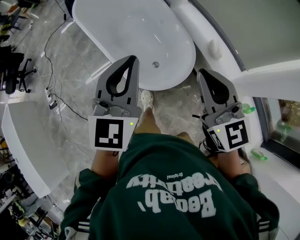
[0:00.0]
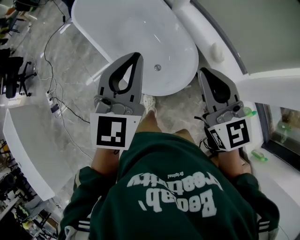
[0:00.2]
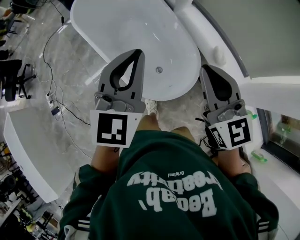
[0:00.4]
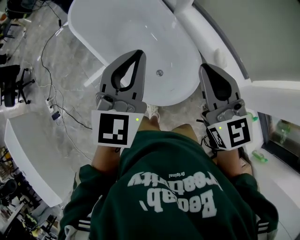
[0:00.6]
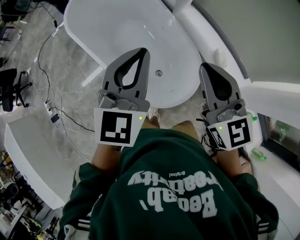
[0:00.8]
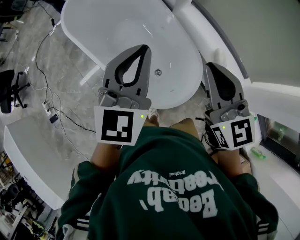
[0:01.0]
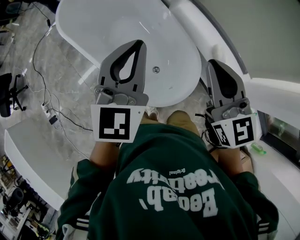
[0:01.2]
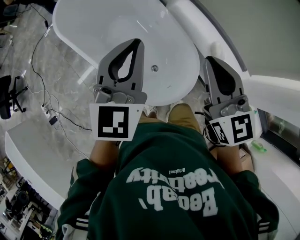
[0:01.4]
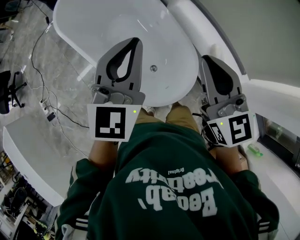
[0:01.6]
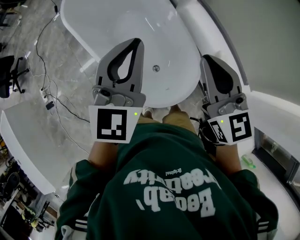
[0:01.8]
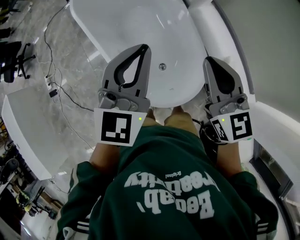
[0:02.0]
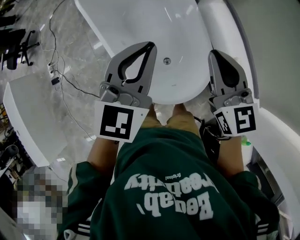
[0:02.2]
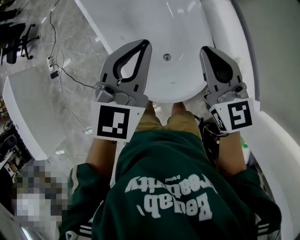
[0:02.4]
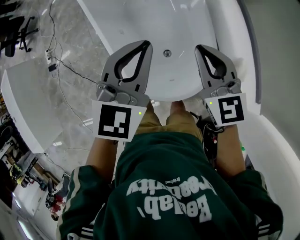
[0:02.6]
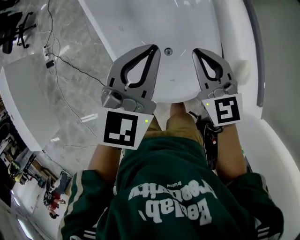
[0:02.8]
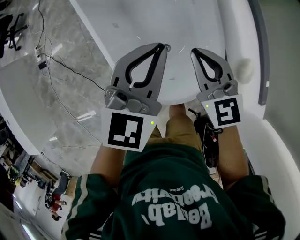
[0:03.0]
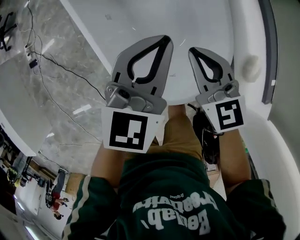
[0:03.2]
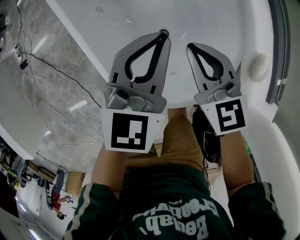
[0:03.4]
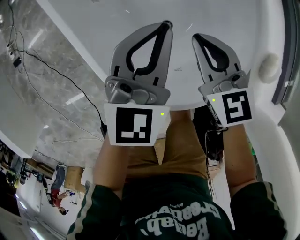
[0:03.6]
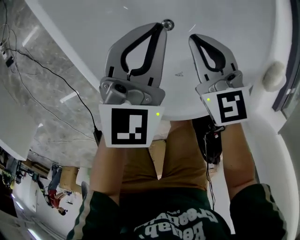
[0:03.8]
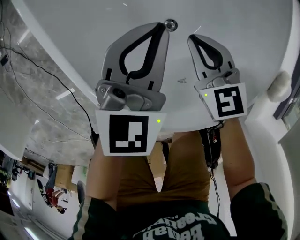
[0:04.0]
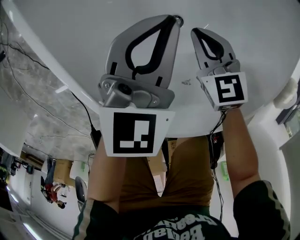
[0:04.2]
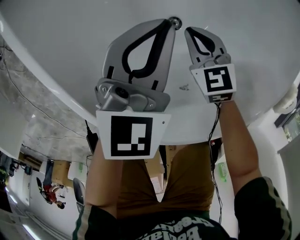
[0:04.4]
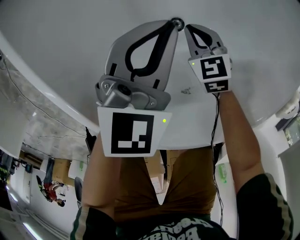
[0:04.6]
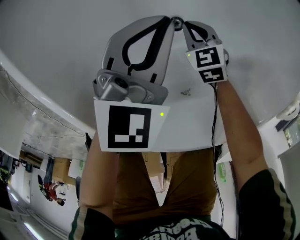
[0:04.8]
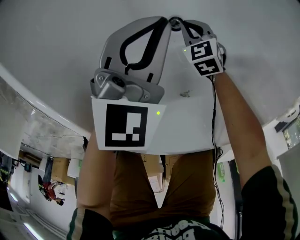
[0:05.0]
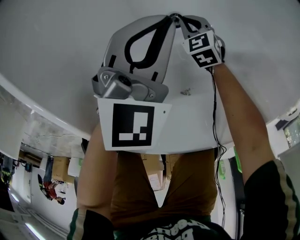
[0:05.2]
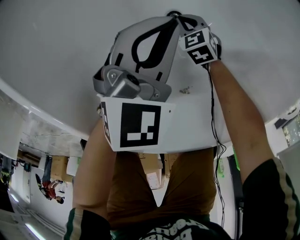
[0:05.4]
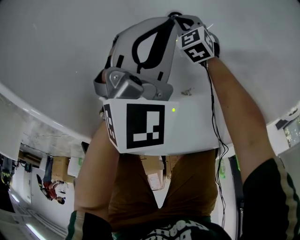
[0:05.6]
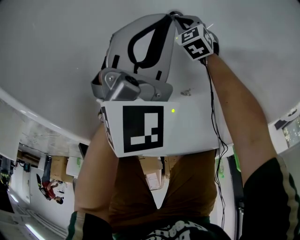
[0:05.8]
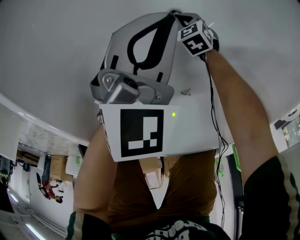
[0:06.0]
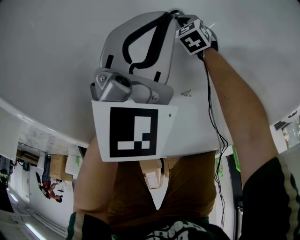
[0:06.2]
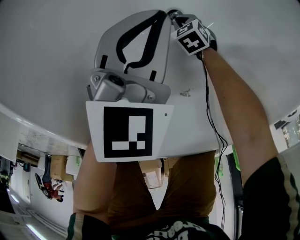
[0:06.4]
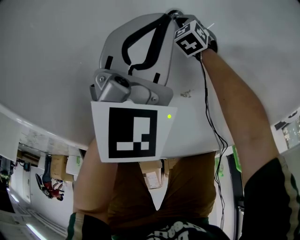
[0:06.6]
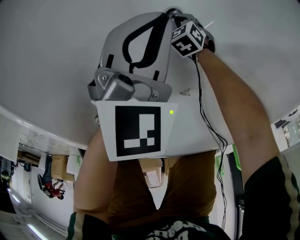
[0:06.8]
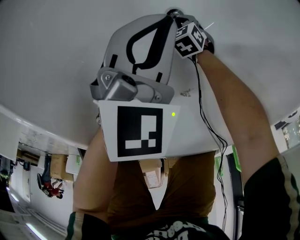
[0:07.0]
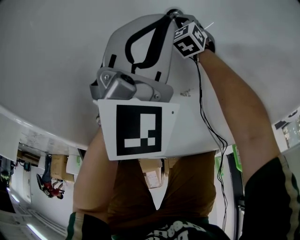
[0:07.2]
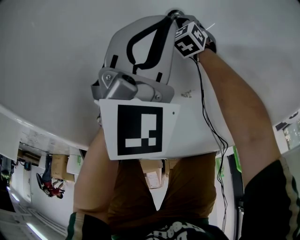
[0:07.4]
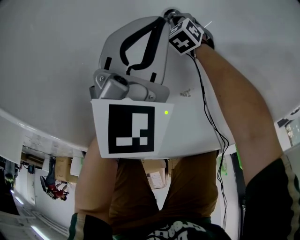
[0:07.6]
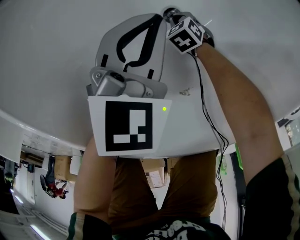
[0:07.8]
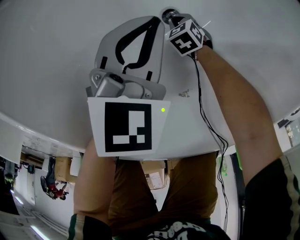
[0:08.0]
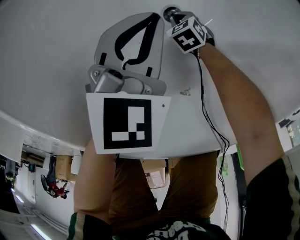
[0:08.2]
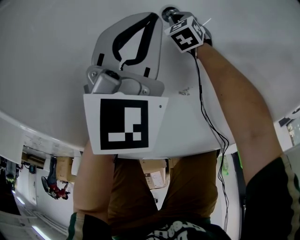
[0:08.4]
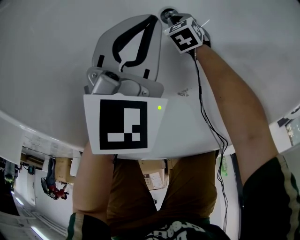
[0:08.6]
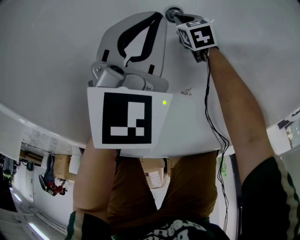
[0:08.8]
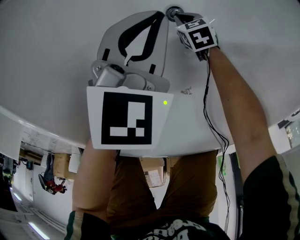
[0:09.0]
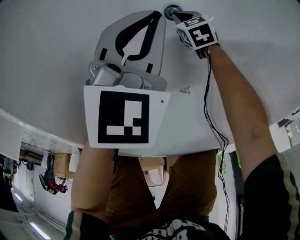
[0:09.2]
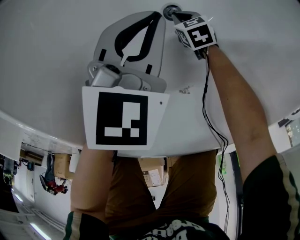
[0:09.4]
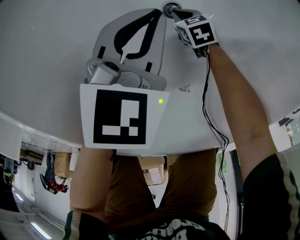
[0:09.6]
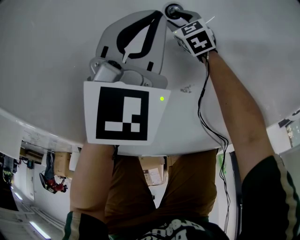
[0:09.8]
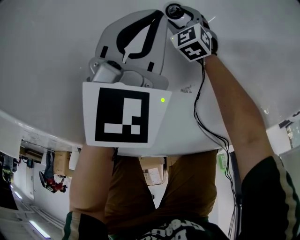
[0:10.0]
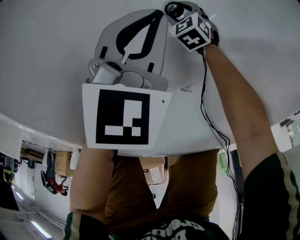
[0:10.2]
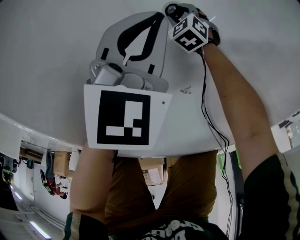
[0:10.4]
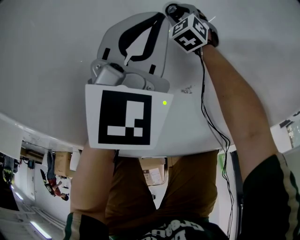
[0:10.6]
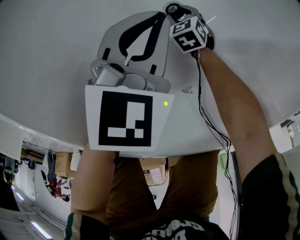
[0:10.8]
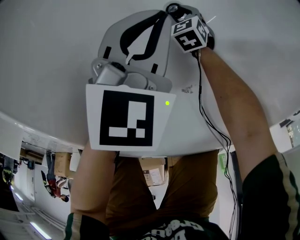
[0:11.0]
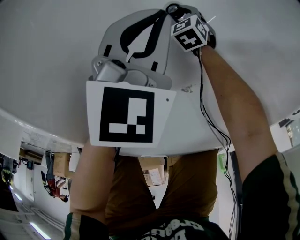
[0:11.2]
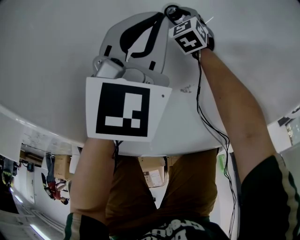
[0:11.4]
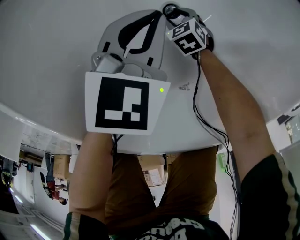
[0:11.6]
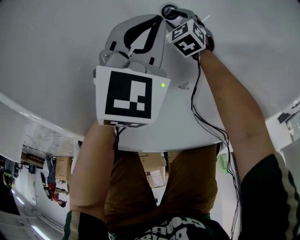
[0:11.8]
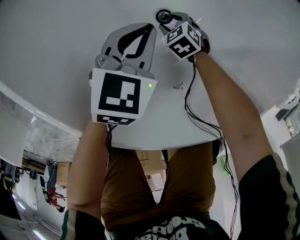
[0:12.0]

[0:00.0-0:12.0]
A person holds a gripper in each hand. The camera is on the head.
0.0 to 1.6 s: Both grippers travel together forward, some 20 cm.
1.6 to 3.0 s: The left gripper travels downward by approximately 20 cm; the right gripper moves downward and forward, roughly 30 cm, and turns by about 30 degrees.
3.0 to 4.4 s: The grippers both shift downward by roughly 40 cm. The right gripper rotates approximately 30 degrees.
4.4 to 6.0 s: The left gripper heads downward, covering approximately 5 cm; the right gripper travels downward by approximately 20 cm, and turns by some 30 degrees.
6.0 to 7.6 s: The grippers stay close to where they were, moving slightly.
7.6 to 9.0 s: The right gripper changes its angle by roughly 20 degrees.
9.0 to 10.4 s: The right gripper changes its angle by about 30 degrees, and opens up.
10.4 to 12.0 s: There are only small adjustments of the grippers.

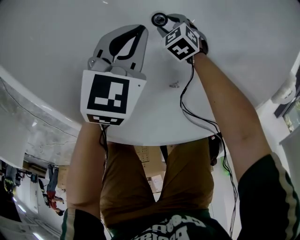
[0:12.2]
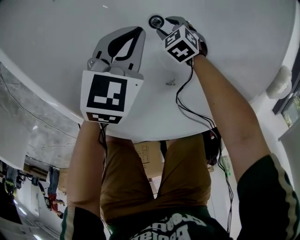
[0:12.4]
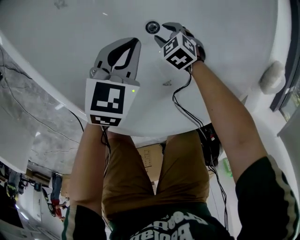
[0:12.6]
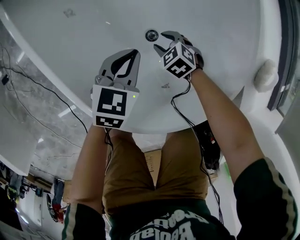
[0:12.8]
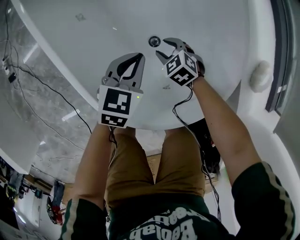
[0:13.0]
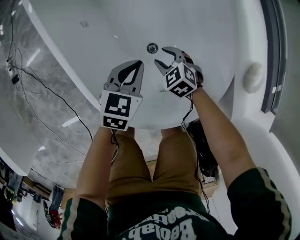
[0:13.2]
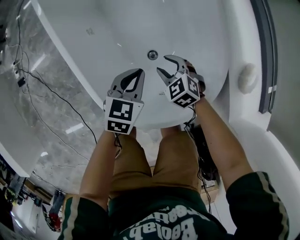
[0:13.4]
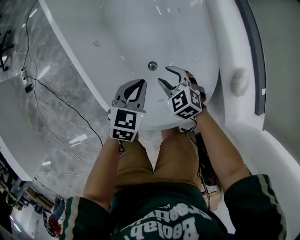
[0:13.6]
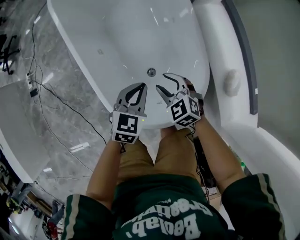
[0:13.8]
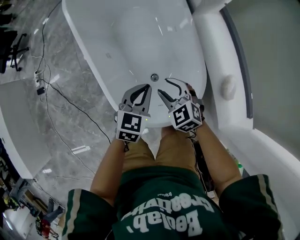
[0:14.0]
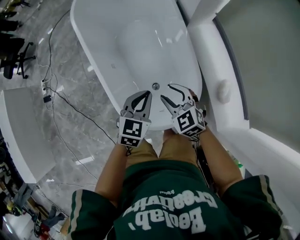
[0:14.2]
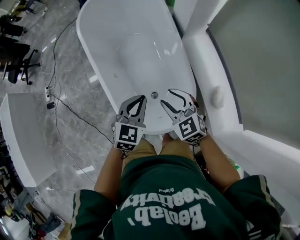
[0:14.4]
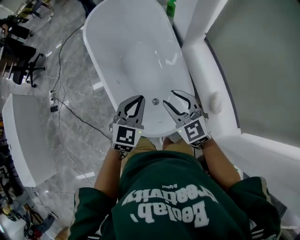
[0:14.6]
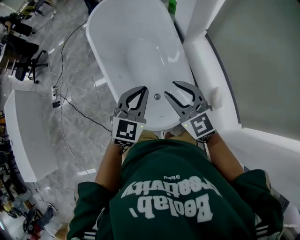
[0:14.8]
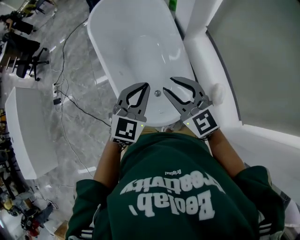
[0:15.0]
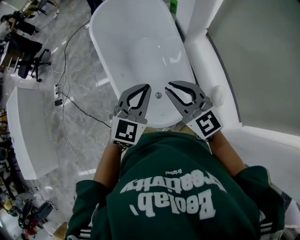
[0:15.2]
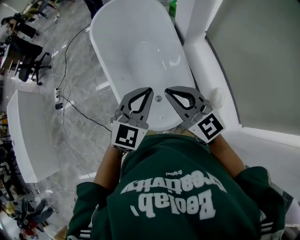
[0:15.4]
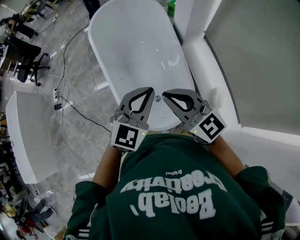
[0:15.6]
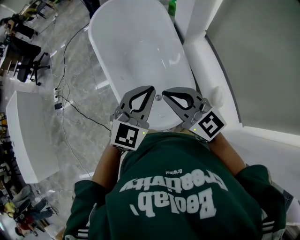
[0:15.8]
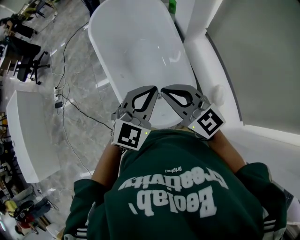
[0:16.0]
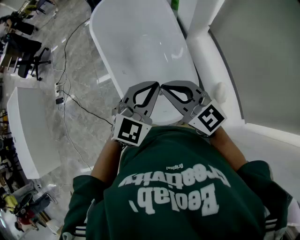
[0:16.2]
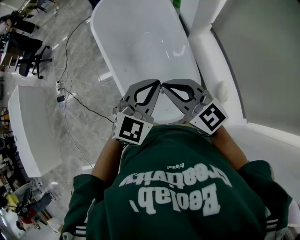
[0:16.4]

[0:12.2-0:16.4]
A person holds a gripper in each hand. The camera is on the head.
12.2 to 13.6 s: The left gripper shifts some 20 cm upward, while the right gripper heads upward, covering about 35 cm, and turns by about 20 degrees.
13.6 to 15.0 s: Both grippers move upward, about 40 cm. The right gripper points its fingers some 40 degrees further upward. Meanwhile the left gripper turns by about 30 degrees.
15.0 to 16.4 s: The right gripper closes.

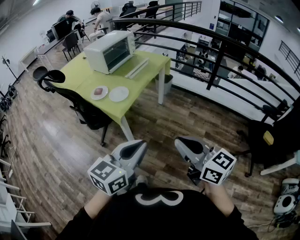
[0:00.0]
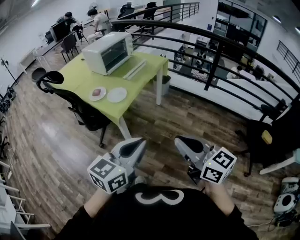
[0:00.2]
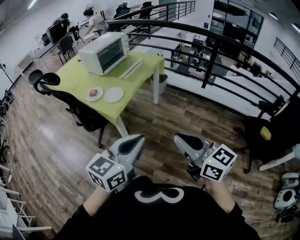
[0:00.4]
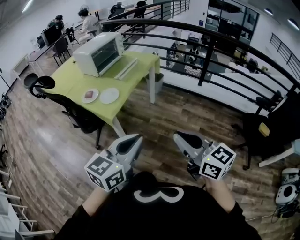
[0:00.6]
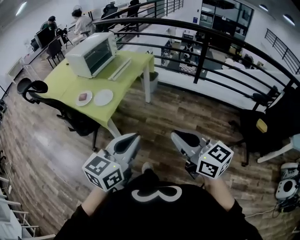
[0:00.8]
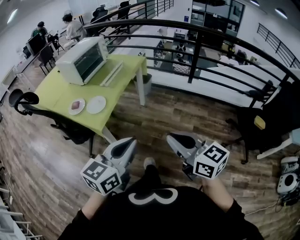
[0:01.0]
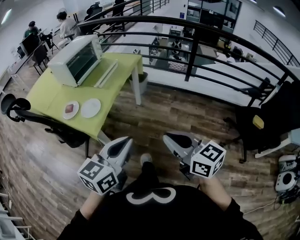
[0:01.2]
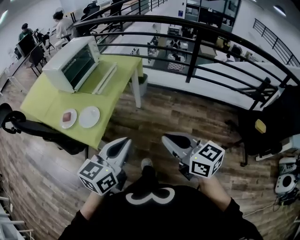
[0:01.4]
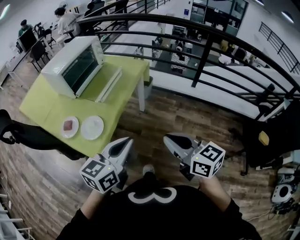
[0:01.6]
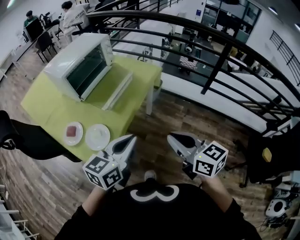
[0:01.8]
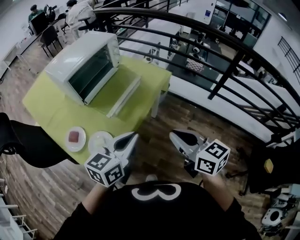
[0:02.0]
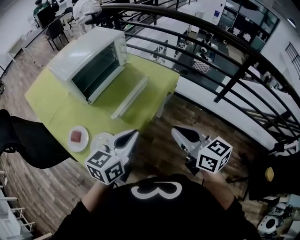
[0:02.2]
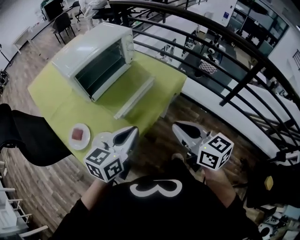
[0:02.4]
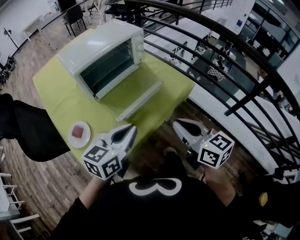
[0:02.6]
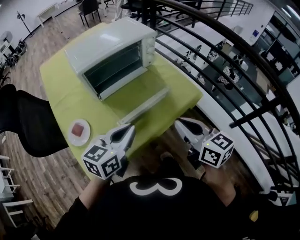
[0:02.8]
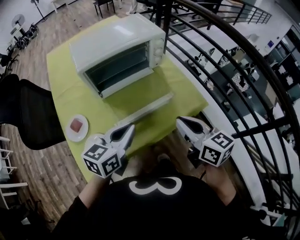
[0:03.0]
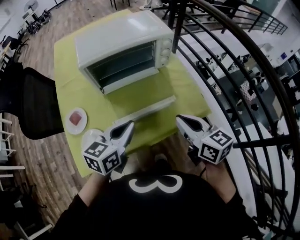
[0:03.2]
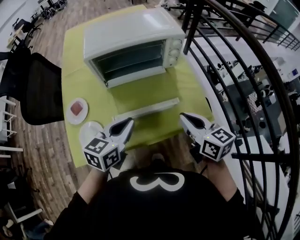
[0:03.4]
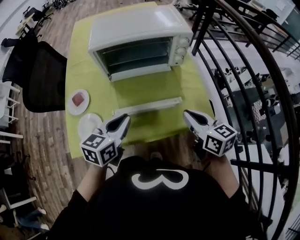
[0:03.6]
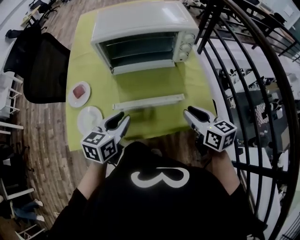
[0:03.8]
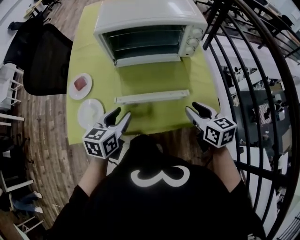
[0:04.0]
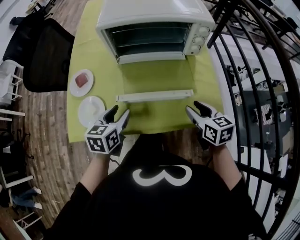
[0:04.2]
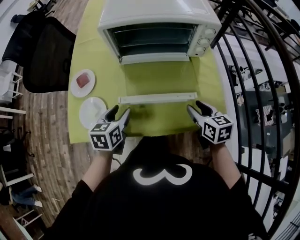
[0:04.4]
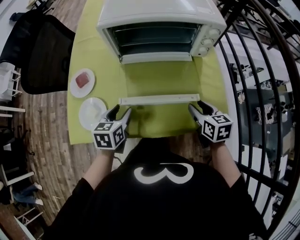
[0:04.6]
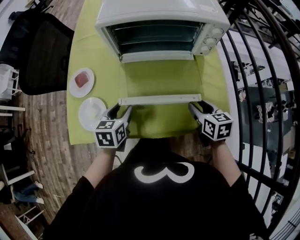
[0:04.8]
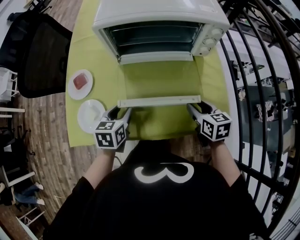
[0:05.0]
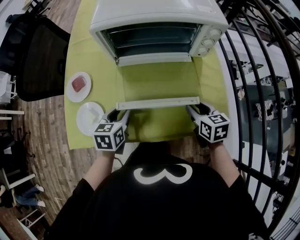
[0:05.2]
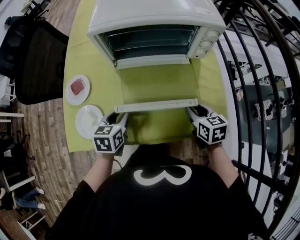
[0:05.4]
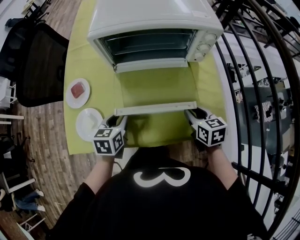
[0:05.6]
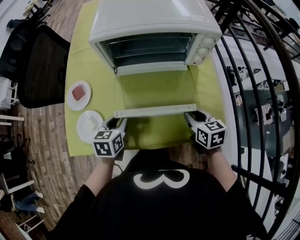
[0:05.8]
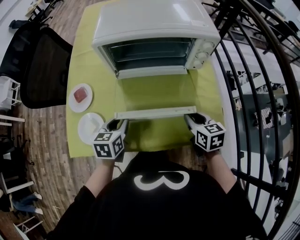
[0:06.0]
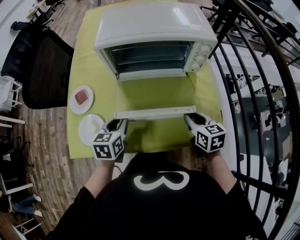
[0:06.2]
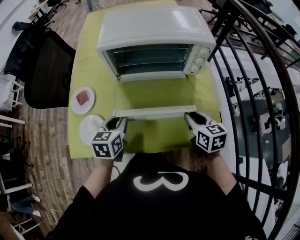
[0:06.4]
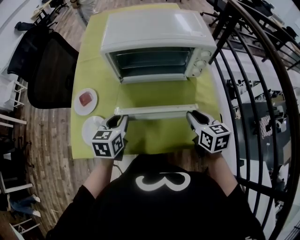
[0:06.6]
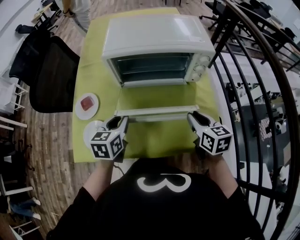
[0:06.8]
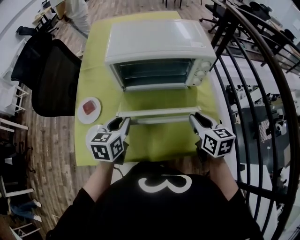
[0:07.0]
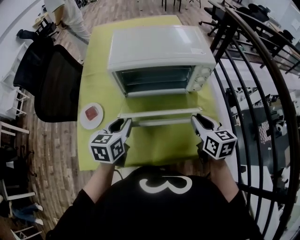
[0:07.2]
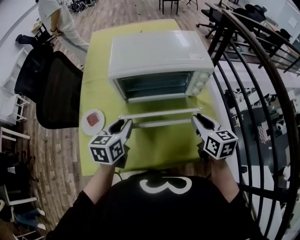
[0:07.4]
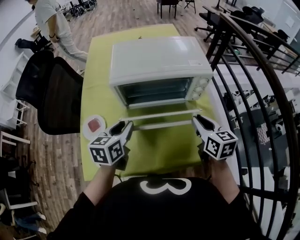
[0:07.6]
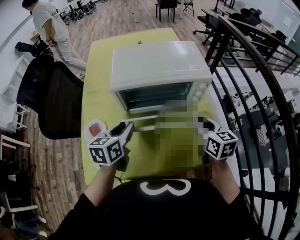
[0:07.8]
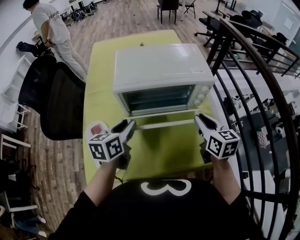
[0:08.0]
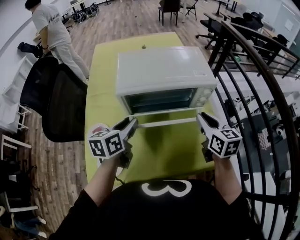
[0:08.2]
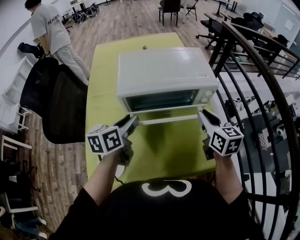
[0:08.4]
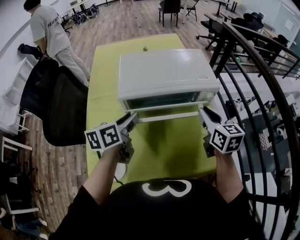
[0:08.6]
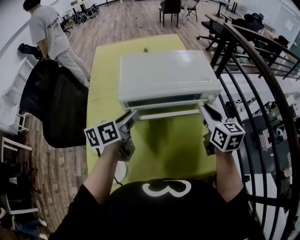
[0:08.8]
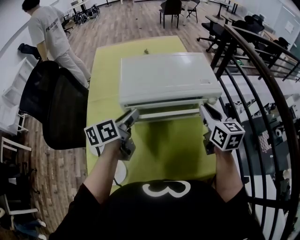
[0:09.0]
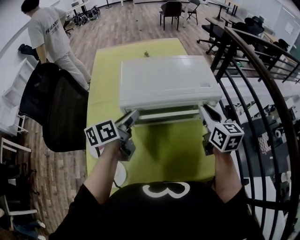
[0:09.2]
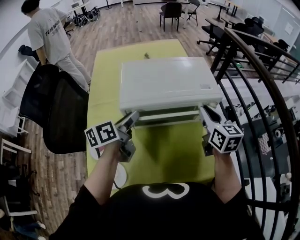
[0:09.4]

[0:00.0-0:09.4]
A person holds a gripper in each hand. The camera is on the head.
0.0 to 1.6 s: The two grippers go some 30 cm forward.
1.6 to 3.2 s: The left gripper ends up roughly 35 cm from where it was, and turns by approximately 40 degrees; the right gripper shifts by some 50 cm, and swivels some 40 degrees.
3.2 to 4.8 s: The left gripper travels downward and to the left by approximately 20 cm, changes its angle by some 40 degrees, and opens up; the right gripper heads downward and forward, covering about 25 cm, rotates some 20 degrees, and opens.
4.8 to 6.2 s: The right gripper closes; the left gripper closes.
6.2 to 7.8 s: The two grippers go approximately 15 cm upward and forward.
7.8 to 9.4 s: The right gripper heads forward and upward, covering about 10 cm, while the left gripper moves forward, approximately 10 cm, and turns by roughly 30 degrees.
